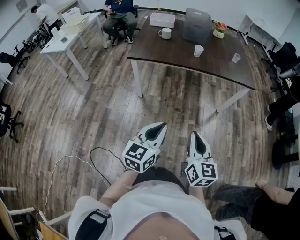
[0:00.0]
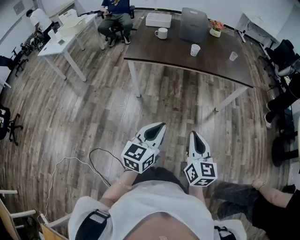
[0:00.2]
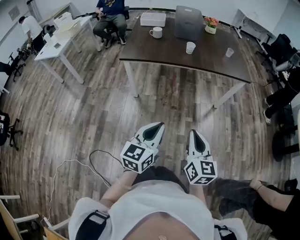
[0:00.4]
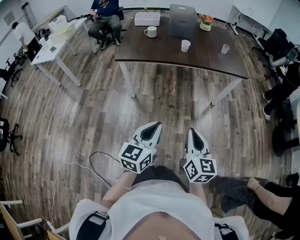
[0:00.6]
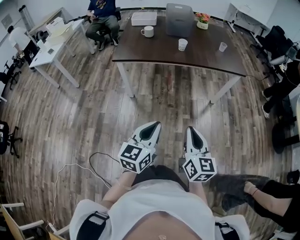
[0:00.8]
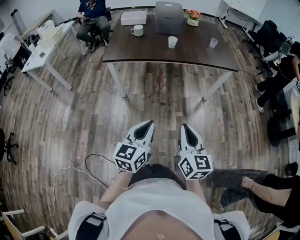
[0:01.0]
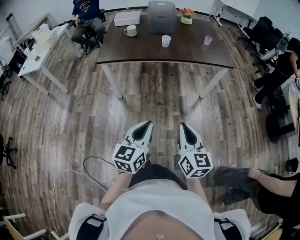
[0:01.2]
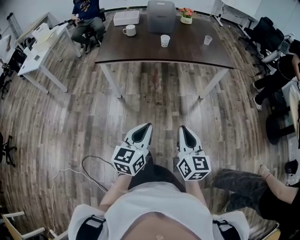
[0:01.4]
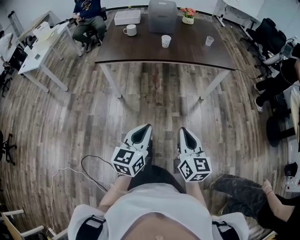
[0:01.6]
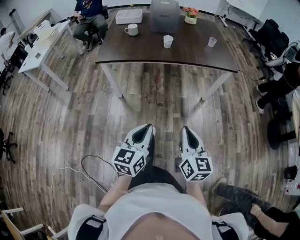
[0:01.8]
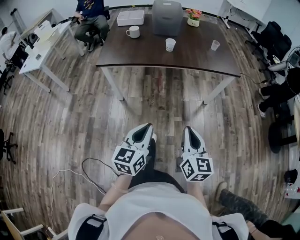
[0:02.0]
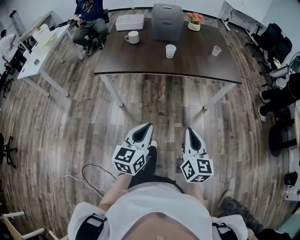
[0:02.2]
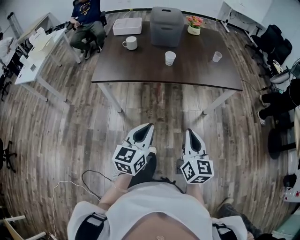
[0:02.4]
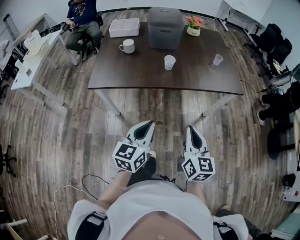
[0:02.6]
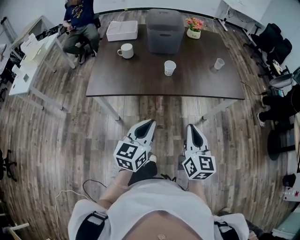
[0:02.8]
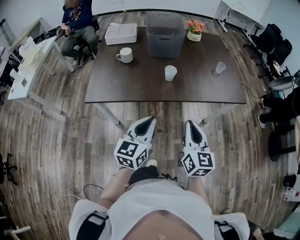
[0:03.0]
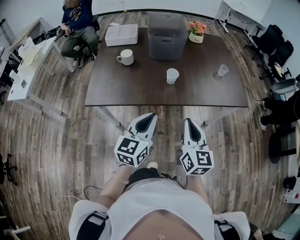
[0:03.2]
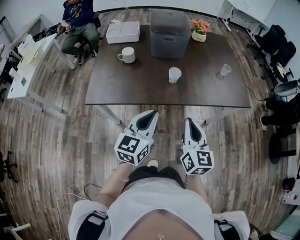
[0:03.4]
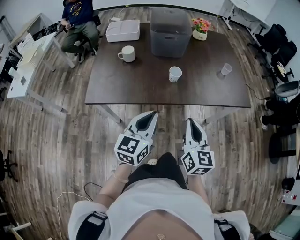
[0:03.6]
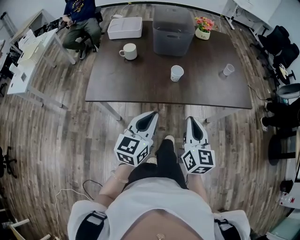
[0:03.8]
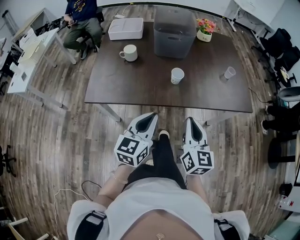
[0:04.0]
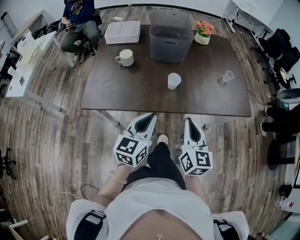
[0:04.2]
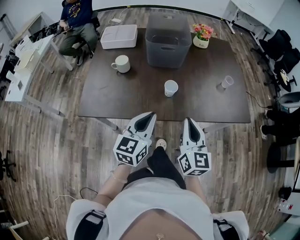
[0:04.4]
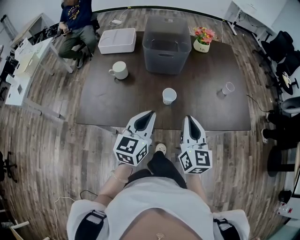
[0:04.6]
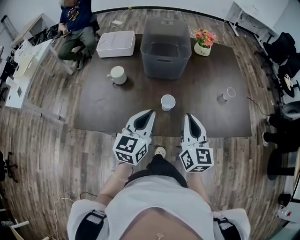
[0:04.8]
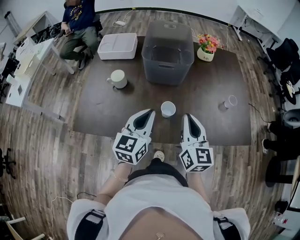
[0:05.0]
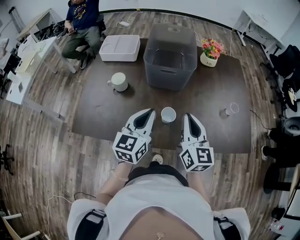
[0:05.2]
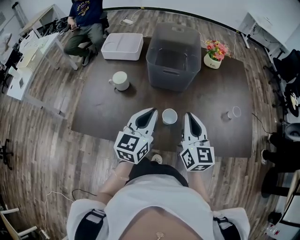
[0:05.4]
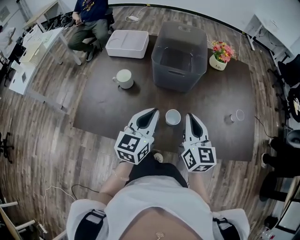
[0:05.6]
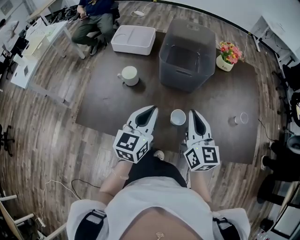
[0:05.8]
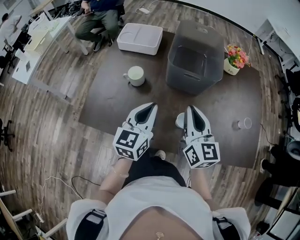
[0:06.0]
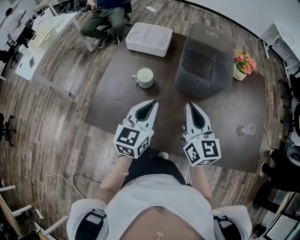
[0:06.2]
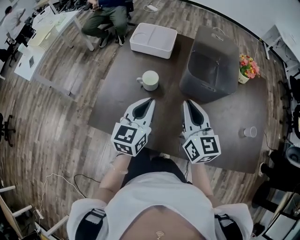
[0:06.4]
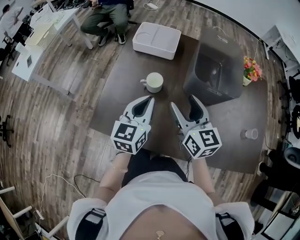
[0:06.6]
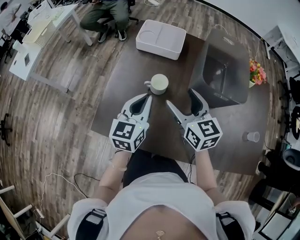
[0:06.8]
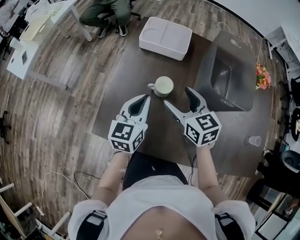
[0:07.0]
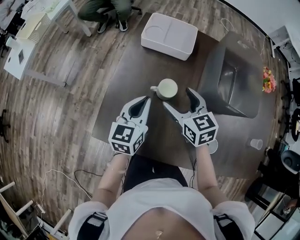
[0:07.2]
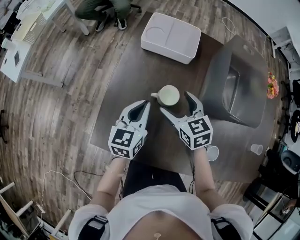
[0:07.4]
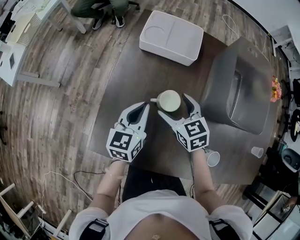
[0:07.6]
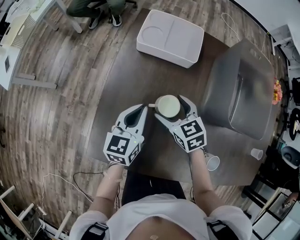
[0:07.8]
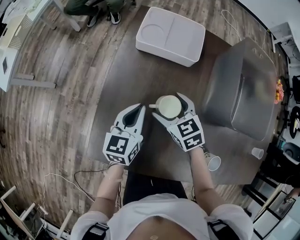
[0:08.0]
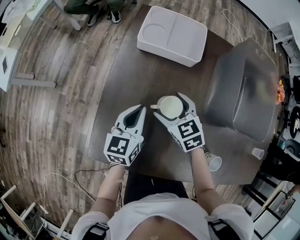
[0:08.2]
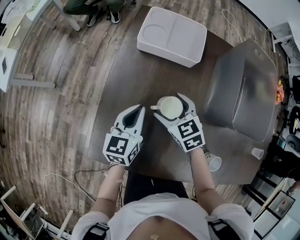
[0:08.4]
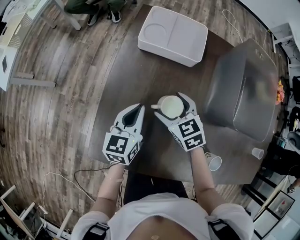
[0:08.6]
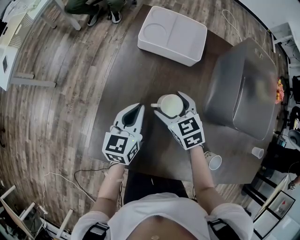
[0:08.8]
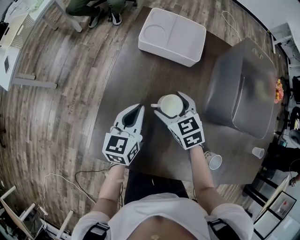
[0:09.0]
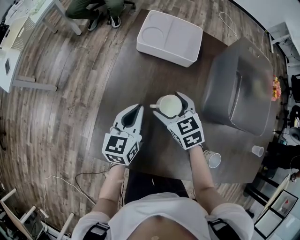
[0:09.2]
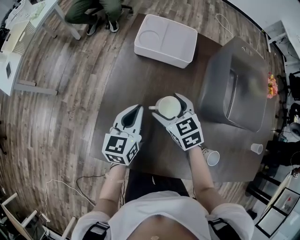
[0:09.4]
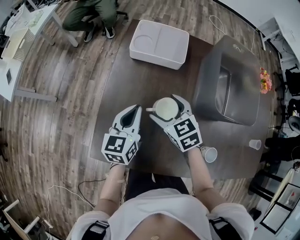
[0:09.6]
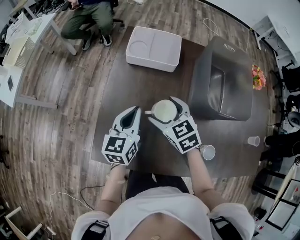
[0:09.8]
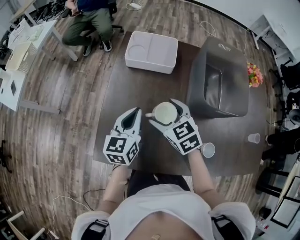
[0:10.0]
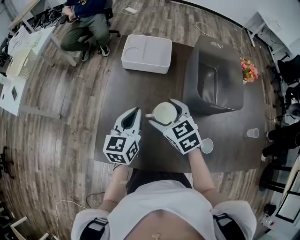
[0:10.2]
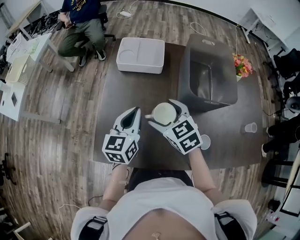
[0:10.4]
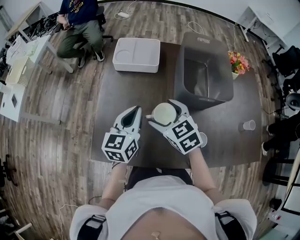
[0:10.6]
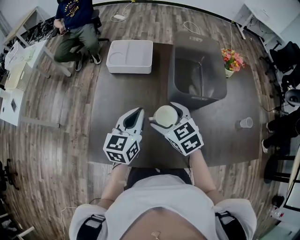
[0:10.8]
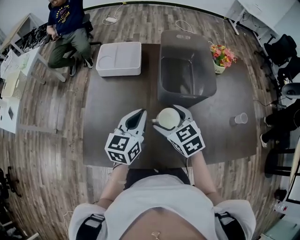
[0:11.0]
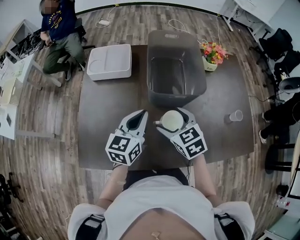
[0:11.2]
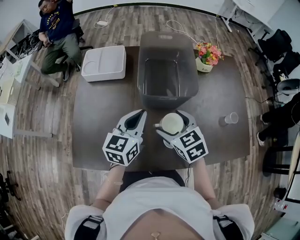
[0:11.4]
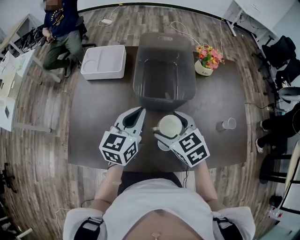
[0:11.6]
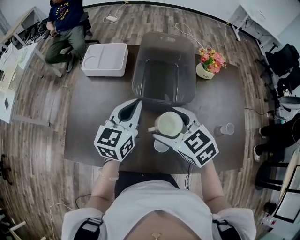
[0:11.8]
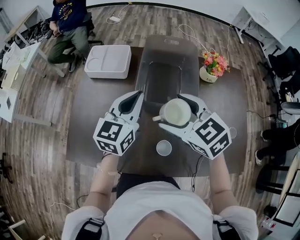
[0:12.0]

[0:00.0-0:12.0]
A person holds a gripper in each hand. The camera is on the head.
0:00.0 to 0:01.6: Both grippers move to the right, some 10 cm.
0:01.6 to 0:03.0: Both grippers travel together forward, roughly 35 cm.
0:03.0 to 0:04.4: Both grippers travel together forward, about 15 cm.
0:04.4 to 0:06.0: The two grippers go approximately 20 cm forward.
0:06.0 to 0:07.6: Both grippers move to the left, forward and downward, some 30 cm. The right gripper angles its fingers downward, by about 30 degrees, and opens its fingers.
0:07.6 to 0:09.0: The grippers stay close to where they were, moving slightly.
0:09.0 to 0:10.4: The left gripper heads upward, covering about 10 cm. Meanwhile the right gripper moves upward and backward, approximately 15 cm.
0:10.4 to 0:12.0: The grippers both shift to the right and upward by about 25 cm.

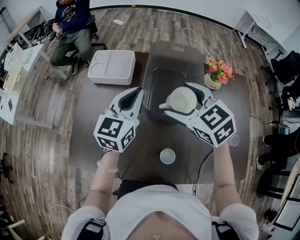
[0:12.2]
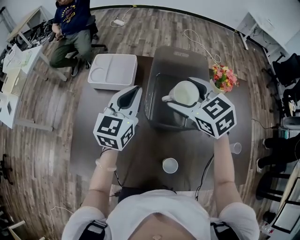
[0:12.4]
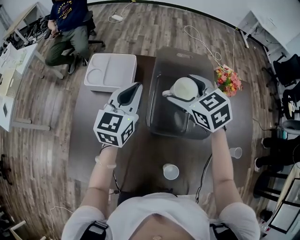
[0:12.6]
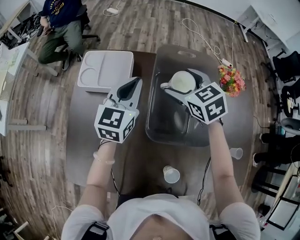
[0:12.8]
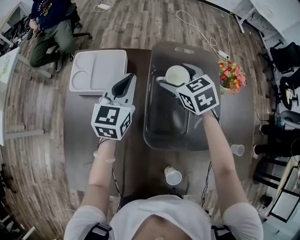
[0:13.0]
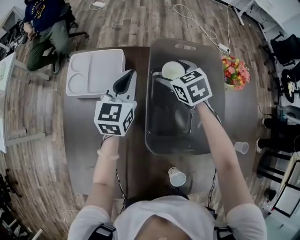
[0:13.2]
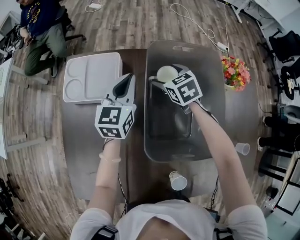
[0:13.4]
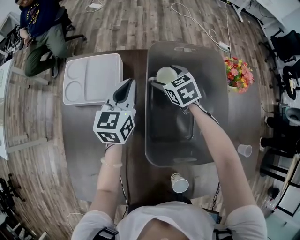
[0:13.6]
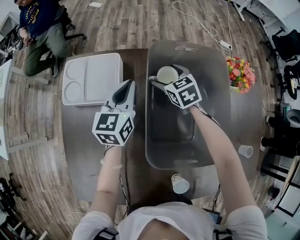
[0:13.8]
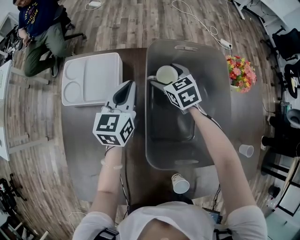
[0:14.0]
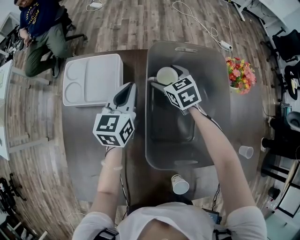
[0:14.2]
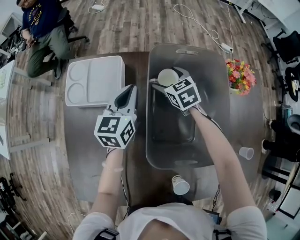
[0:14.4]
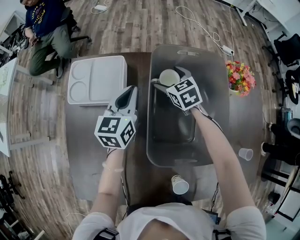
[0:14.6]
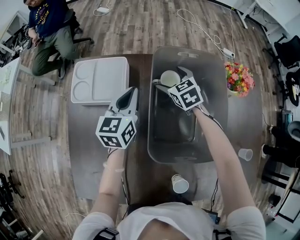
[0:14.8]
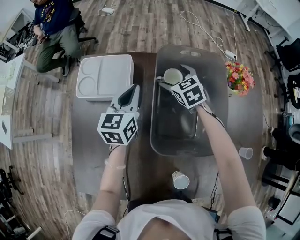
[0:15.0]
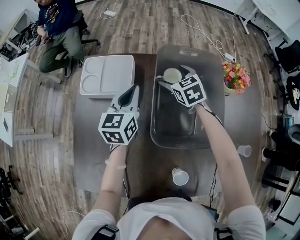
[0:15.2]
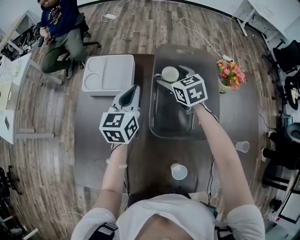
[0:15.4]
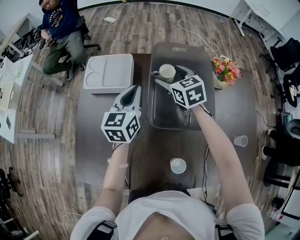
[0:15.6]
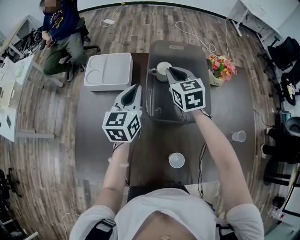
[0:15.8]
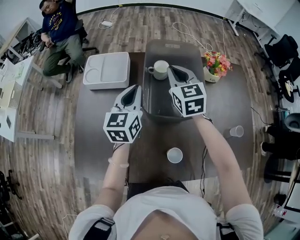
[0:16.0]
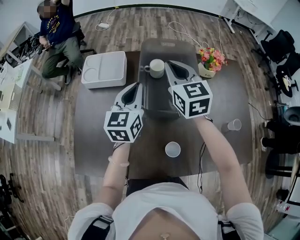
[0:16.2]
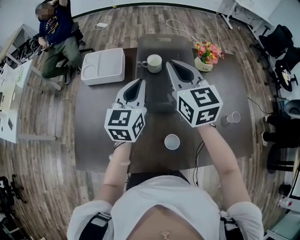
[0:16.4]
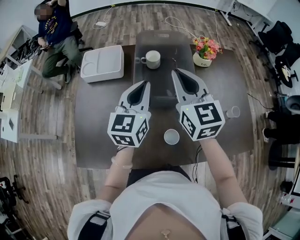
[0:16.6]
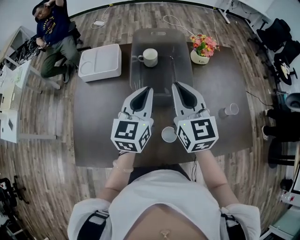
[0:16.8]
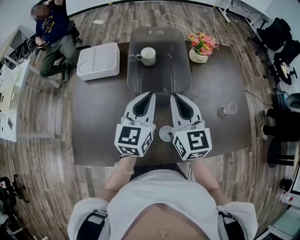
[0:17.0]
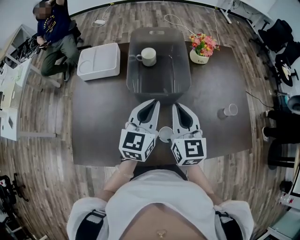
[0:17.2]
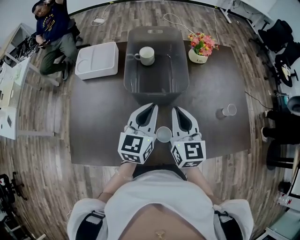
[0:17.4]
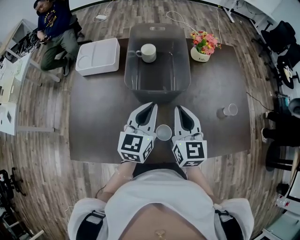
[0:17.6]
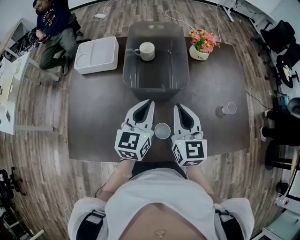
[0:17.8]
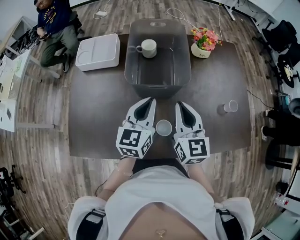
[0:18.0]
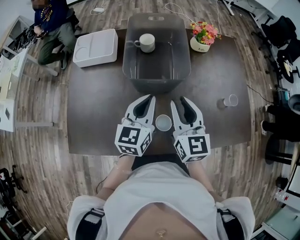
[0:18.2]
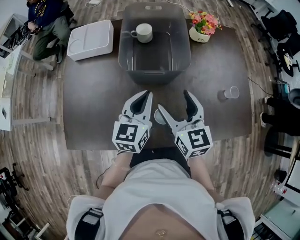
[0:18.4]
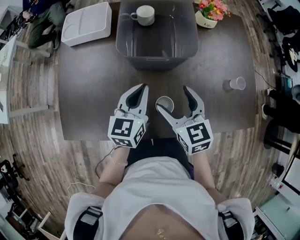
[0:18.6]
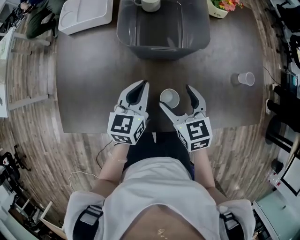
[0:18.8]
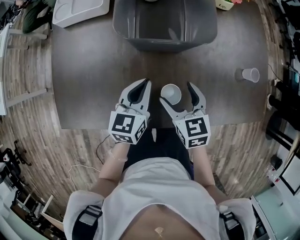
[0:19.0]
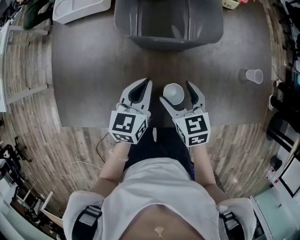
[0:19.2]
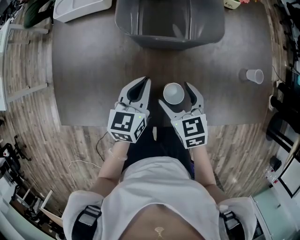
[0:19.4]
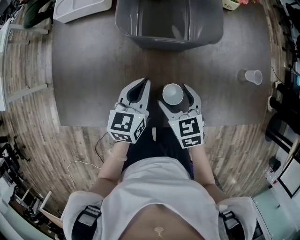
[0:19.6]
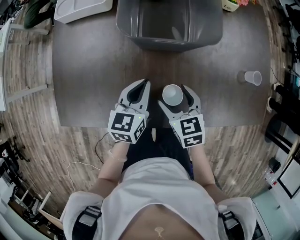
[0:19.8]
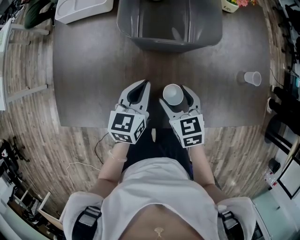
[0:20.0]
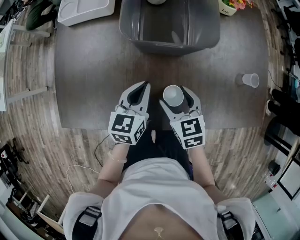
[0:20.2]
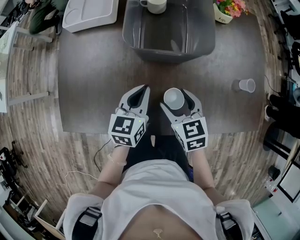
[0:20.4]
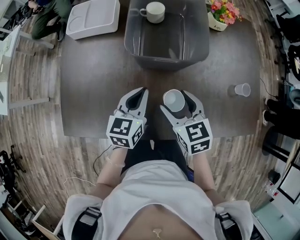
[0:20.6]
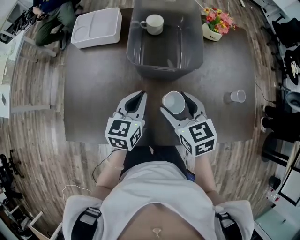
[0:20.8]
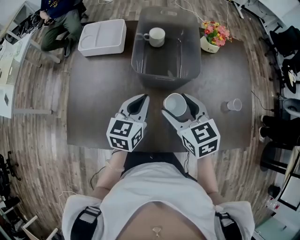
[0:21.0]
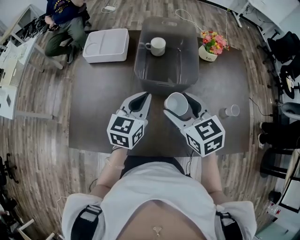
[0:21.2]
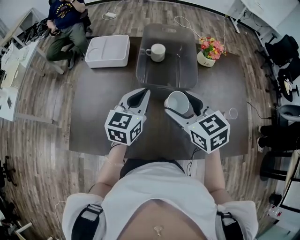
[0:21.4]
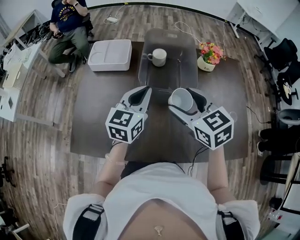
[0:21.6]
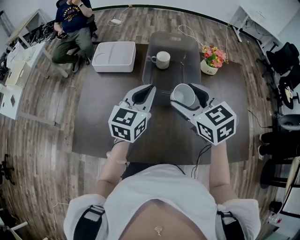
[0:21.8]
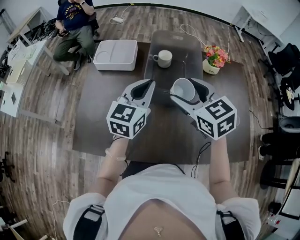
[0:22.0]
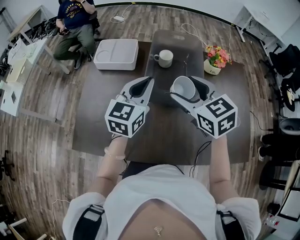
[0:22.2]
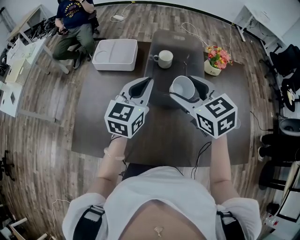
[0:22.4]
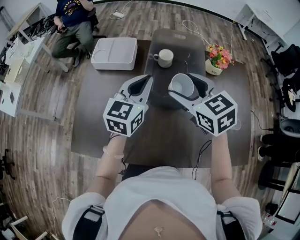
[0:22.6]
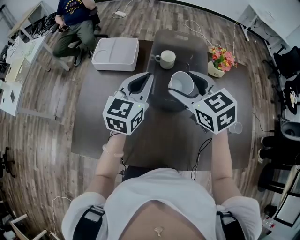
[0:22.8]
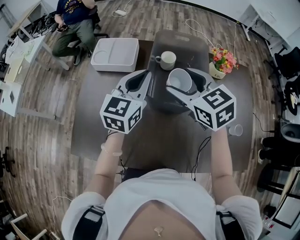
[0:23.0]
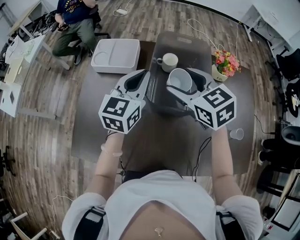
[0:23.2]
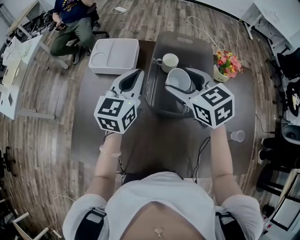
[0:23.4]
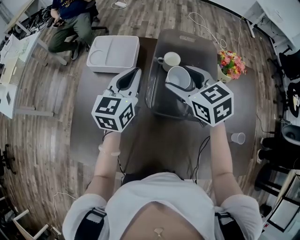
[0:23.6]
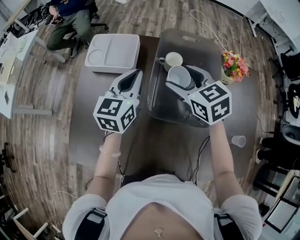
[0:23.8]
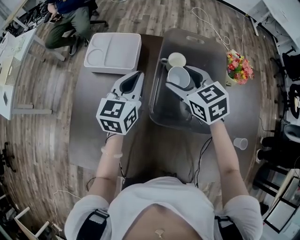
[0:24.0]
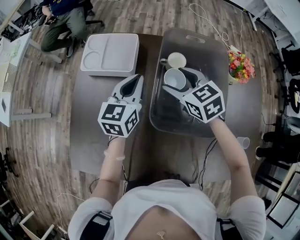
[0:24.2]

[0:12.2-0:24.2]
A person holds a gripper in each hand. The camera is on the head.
0:12.2 to 0:13.8: The two grippers go some 30 cm forward and downward. The right gripper rotates roughly 20 degrees.
0:13.8 to 0:15.2: The left gripper moves roughly 5 cm. Meanwhile the right gripper goes roughly 5 cm upward.
0:15.2 to 0:16.6: The right gripper moves backward and upward, roughly 35 cm, tips its fingers upward by roughly 30 degrees, and closes its fingers, while the left gripper goes roughly 25 cm backward, upward and to the right.
0:16.6 to 0:18.2: The grippers both shift downward, backward and to the right by roughly 15 cm.
0:18.2 to 0:19.8: The two grippers go some 15 cm downward. The right gripper angles its fingers downward, by approximately 30 degrees, and opens its fingers.
0:19.8 to 0:21.2: The left gripper heads upward and forward, covering roughly 15 cm. Meanwhile the right gripper travels upward by about 20 cm.
0:21.2 to 0:22.6: The grippers both shift forward and upward by roughly 10 cm.
0:22.6 to 0:24.2: Both grippers move forward and downward, about 20 cm.
